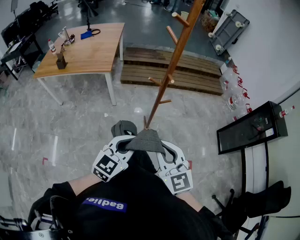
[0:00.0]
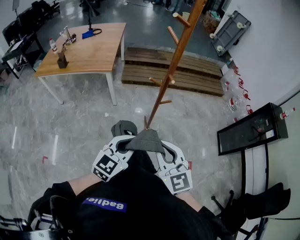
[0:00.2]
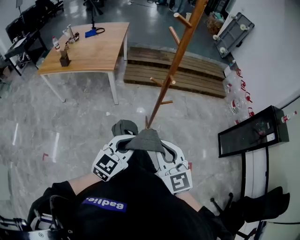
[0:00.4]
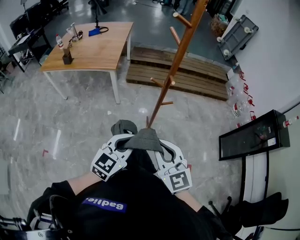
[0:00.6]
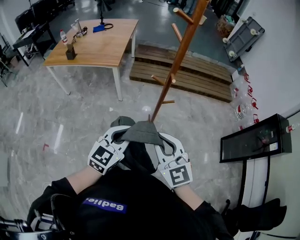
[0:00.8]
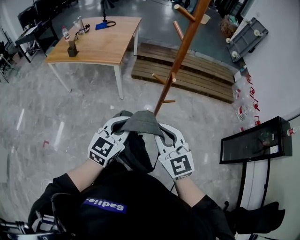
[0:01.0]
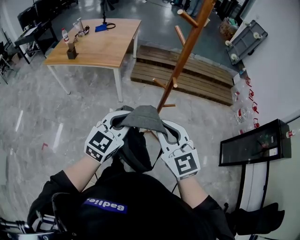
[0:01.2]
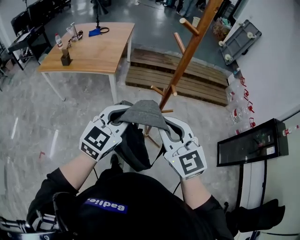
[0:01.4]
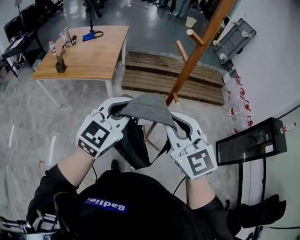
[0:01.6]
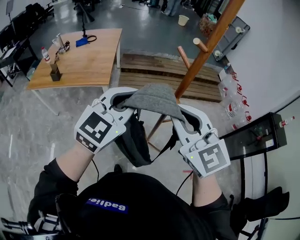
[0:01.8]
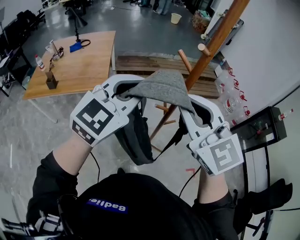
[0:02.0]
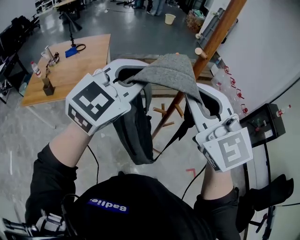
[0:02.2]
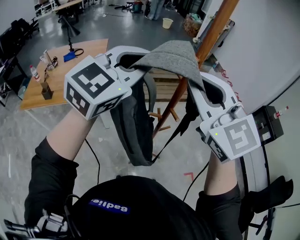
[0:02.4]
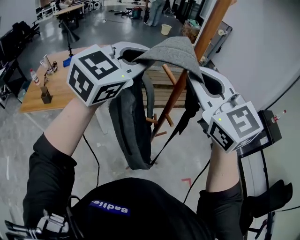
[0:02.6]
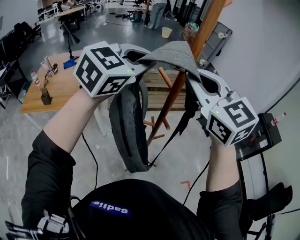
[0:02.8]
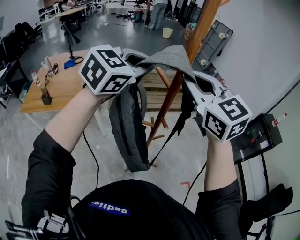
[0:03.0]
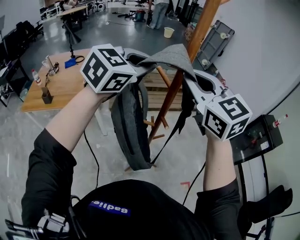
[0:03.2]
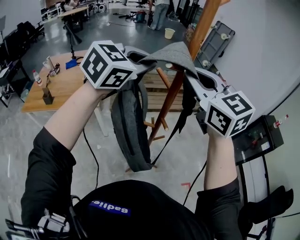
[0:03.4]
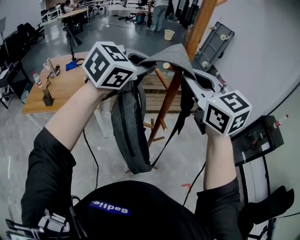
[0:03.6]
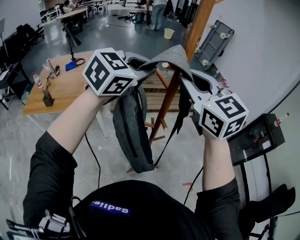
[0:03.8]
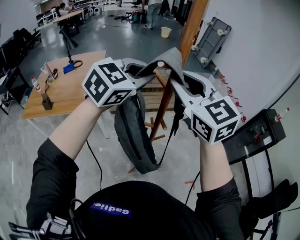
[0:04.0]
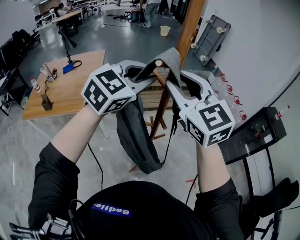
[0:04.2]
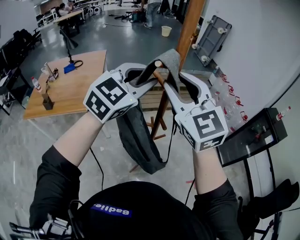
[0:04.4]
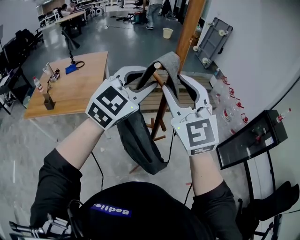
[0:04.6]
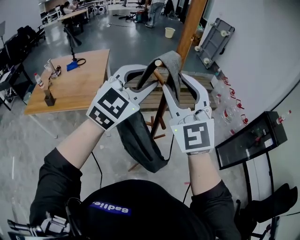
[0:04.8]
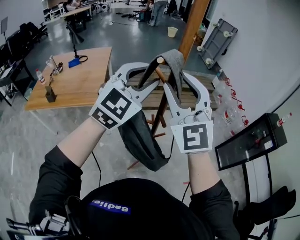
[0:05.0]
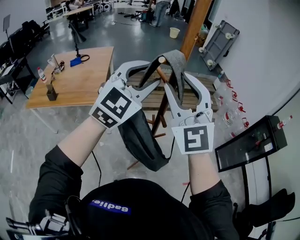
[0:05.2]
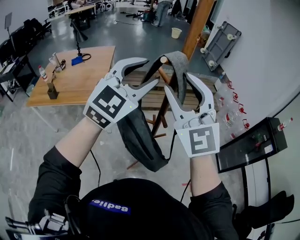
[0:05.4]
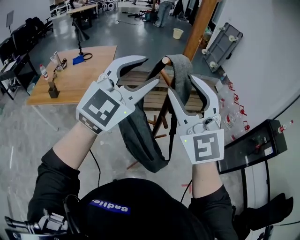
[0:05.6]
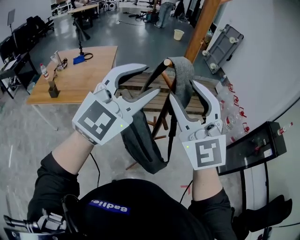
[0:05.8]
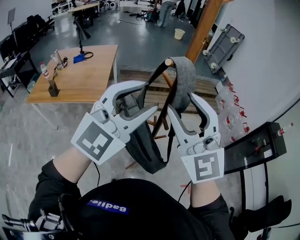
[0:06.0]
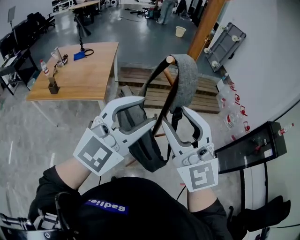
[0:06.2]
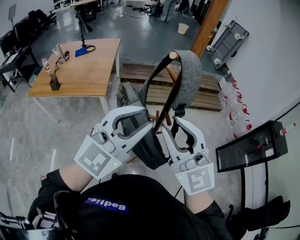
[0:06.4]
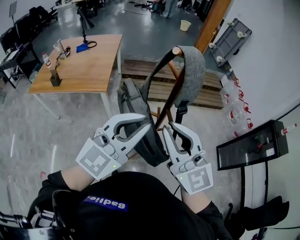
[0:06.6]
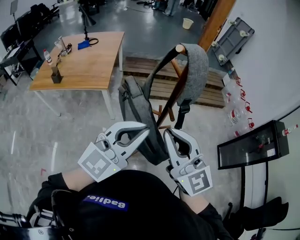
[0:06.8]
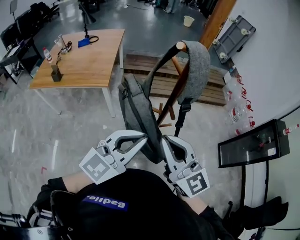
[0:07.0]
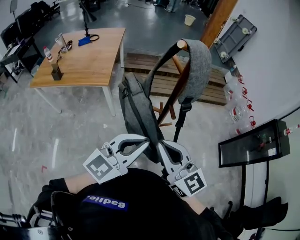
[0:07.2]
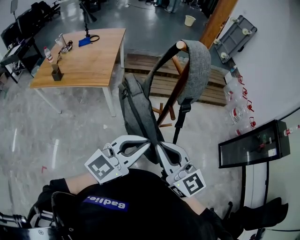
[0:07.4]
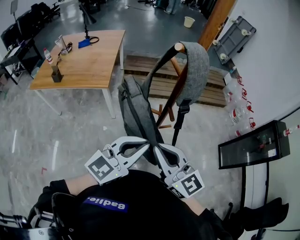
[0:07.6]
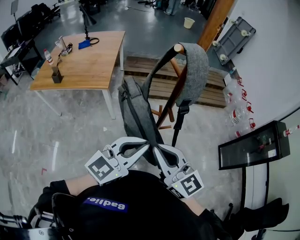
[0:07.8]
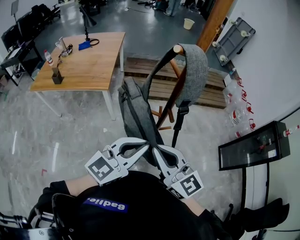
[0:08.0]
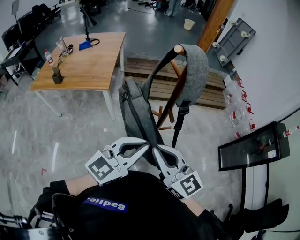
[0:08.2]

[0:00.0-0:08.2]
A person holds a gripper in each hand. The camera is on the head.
0:00.0 to 0:01.6: Both grippers move forward and upward, about 20 cm.
0:01.6 to 0:03.2: The two grippers go approximately 25 cm forward and upward. The left gripper changes its angle by roughly 20 degrees.
0:03.2 to 0:05.0: The right gripper swivels approximately 30 degrees, and opens its fingers. Meanwhile the left gripper ends up some 5 cm from where it was, turns by some 20 degrees, and opens.
0:05.0 to 0:06.6: The left gripper moves backward and downward, approximately 15 cm, rotates some 20 degrees, and closes up, while the right gripper shifts about 15 cm downward and backward, rotates roughly 30 degrees, and closes.
0:06.6 to 0:08.2: The grippers both shift downward by approximately 10 cm. The right gripper swivels roughly 20 degrees.

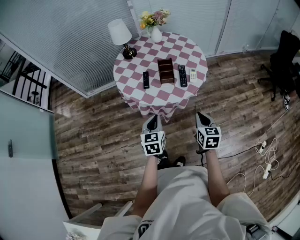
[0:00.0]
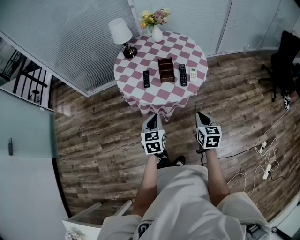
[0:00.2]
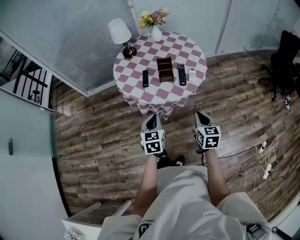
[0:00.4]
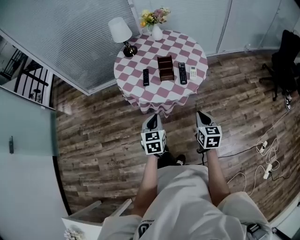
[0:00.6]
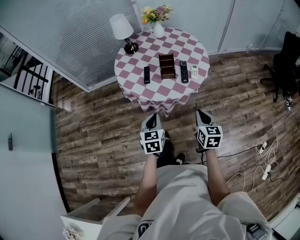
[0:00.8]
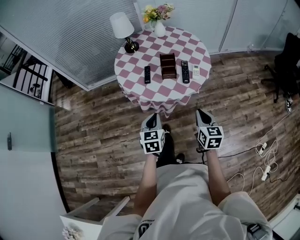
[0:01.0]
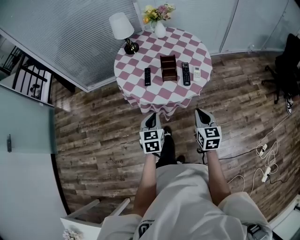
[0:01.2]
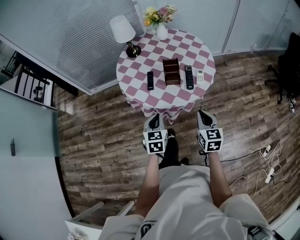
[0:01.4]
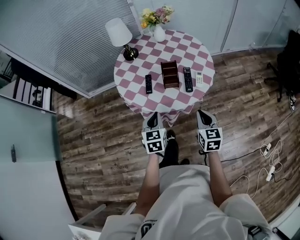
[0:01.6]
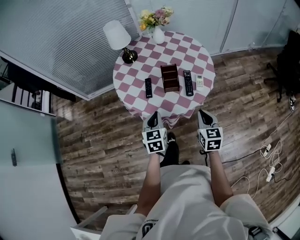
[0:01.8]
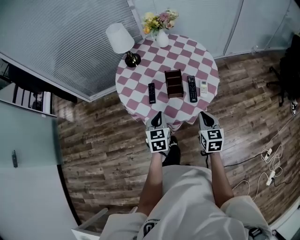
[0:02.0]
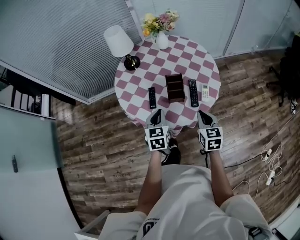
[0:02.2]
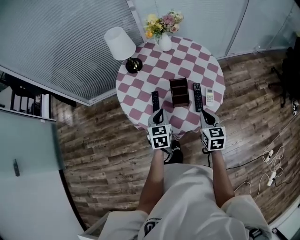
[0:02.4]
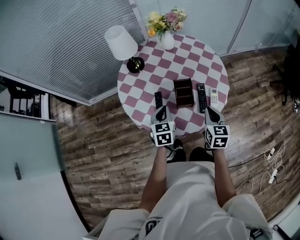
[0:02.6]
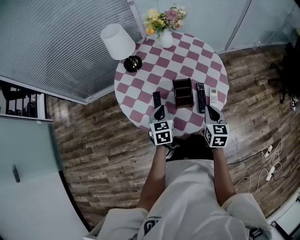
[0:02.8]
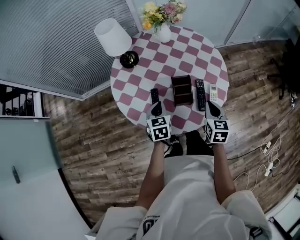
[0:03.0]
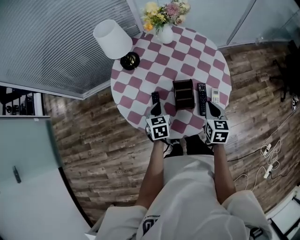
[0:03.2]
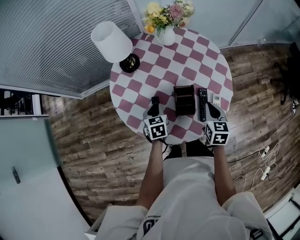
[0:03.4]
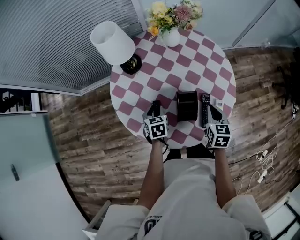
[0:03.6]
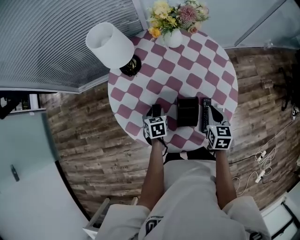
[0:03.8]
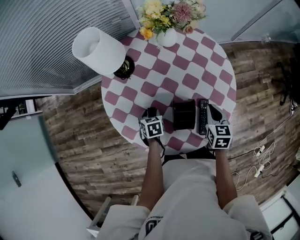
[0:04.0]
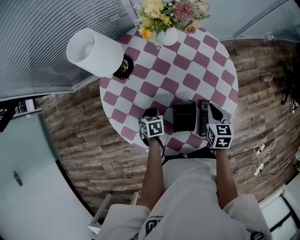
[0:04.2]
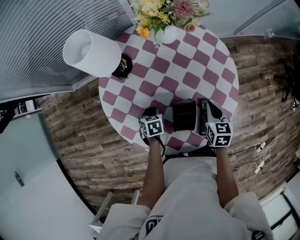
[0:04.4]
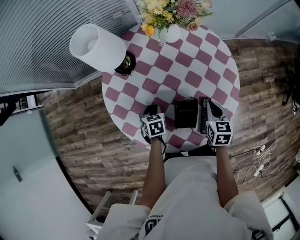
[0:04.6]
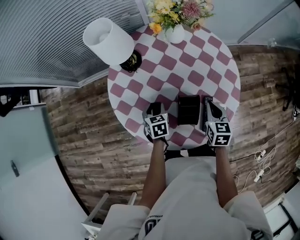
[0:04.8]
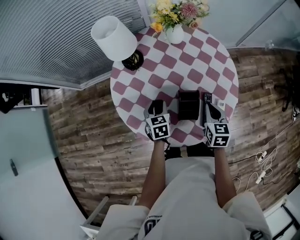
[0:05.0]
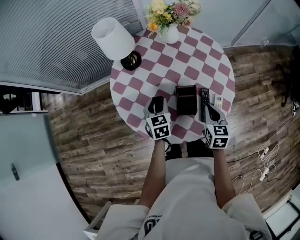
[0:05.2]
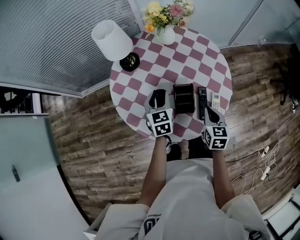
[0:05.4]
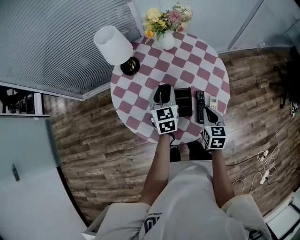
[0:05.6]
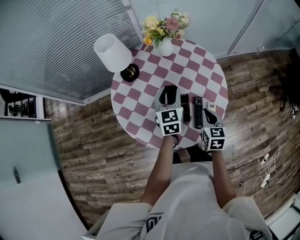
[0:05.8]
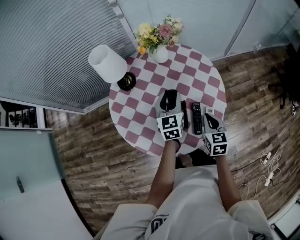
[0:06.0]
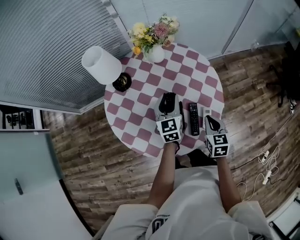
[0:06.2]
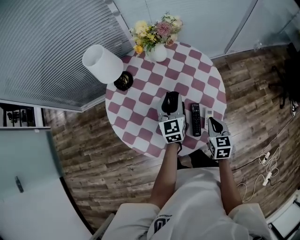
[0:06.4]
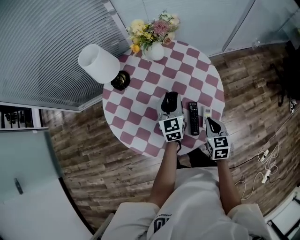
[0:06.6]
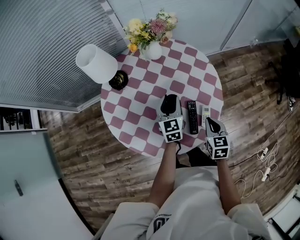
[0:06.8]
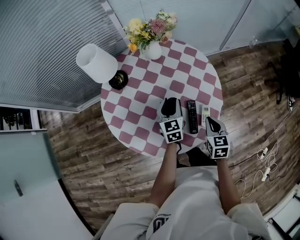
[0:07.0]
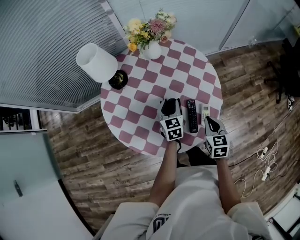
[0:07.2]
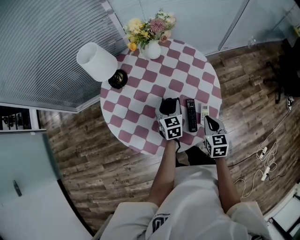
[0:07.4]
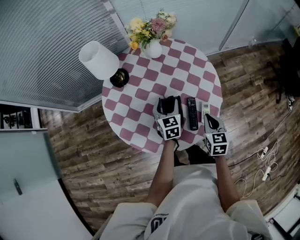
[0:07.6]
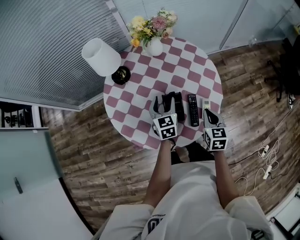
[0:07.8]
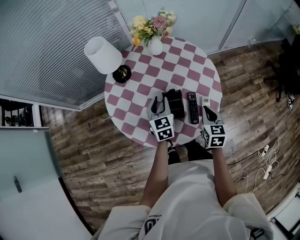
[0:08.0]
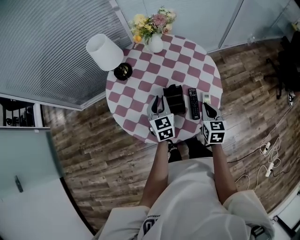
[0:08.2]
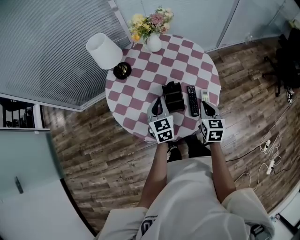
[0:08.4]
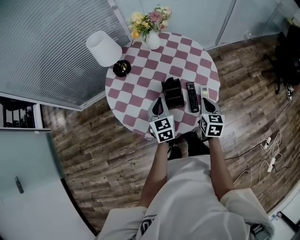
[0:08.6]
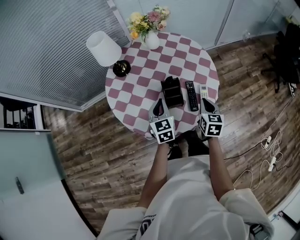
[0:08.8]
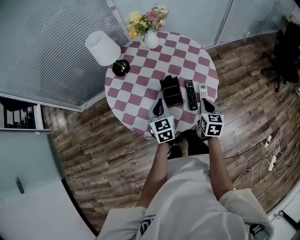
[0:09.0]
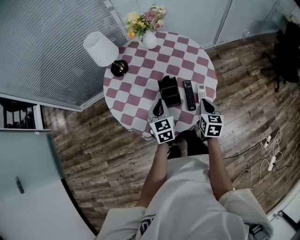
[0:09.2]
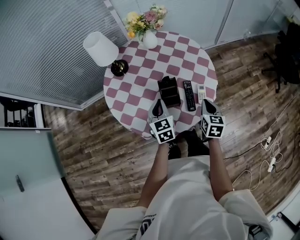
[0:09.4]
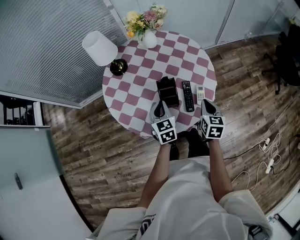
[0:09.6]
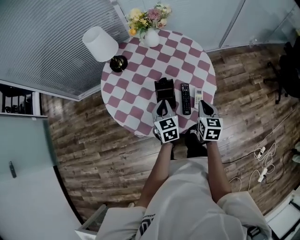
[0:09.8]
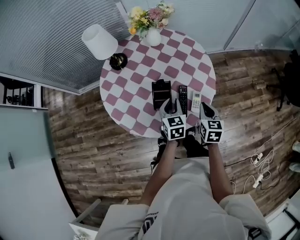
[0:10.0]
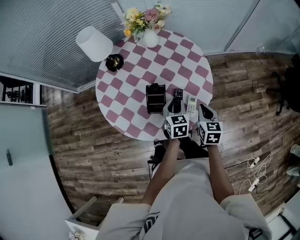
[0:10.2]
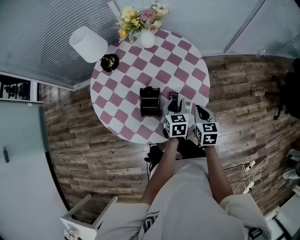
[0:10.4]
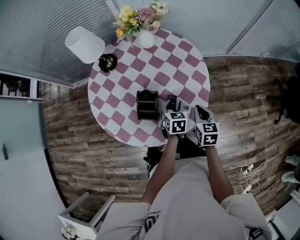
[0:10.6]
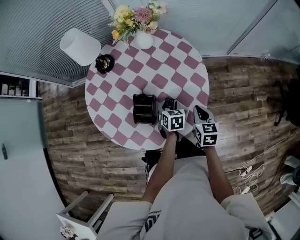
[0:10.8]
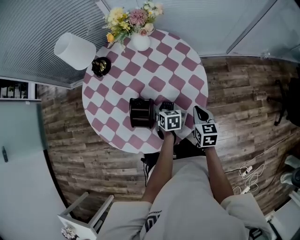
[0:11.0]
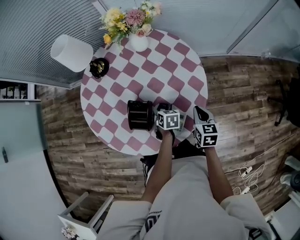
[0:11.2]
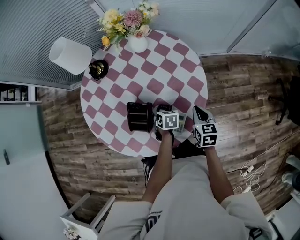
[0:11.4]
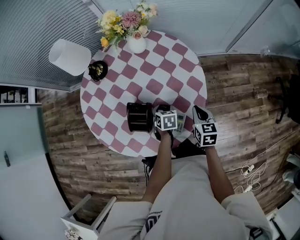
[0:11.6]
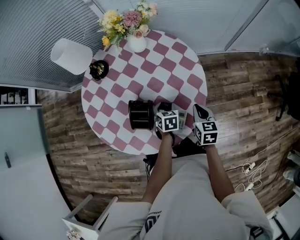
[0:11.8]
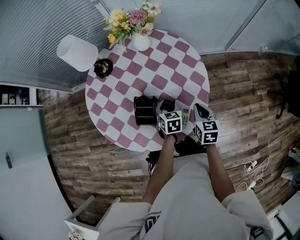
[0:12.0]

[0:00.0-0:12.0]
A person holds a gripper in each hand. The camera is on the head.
0:00.0 to 0:01.6: Both grippers move forward, some 10 cm.
0:01.6 to 0:03.0: Both grippers move forward, approximately 25 cm.
0:03.0 to 0:04.4: The right gripper is displaced forward and downward by approximately 15 cm. Meanwhile the left gripper travels downward and forward by approximately 20 cm, rotates some 30 degrees, and opens.
0:04.4 to 0:06.0: The right gripper shifts some 15 cm backward and upward, while the left gripper is displaced upward and to the right by approximately 30 cm, and points its fingers some 50 degrees further upward.
0:06.0 to 0:07.6: The left gripper shifts approximately 10 cm downward.
0:07.6 to 0:09.0: The right gripper travels backward by some 5 cm. Meanwhile the left gripper moves backward, some 10 cm, and closes.
0:09.0 to 0:10.4: The left gripper is displaced to the right by some 20 cm, and opens up, while the right gripper moves to the right and forward, some 10 cm, and turns by roughly 20 degrees.
0:10.4 to 0:12.0: The left gripper heads downward, covering approximately 5 cm, while the right gripper heads forward, covering about 5 cm.

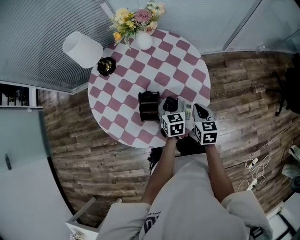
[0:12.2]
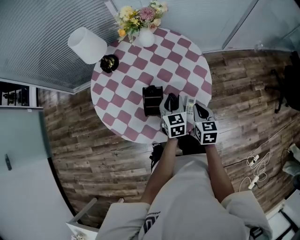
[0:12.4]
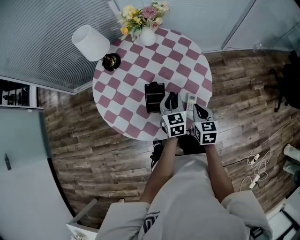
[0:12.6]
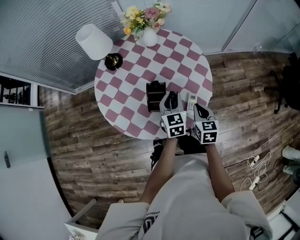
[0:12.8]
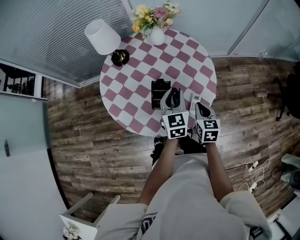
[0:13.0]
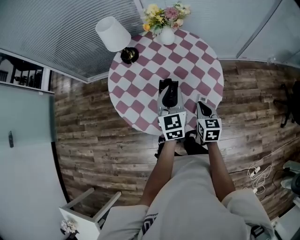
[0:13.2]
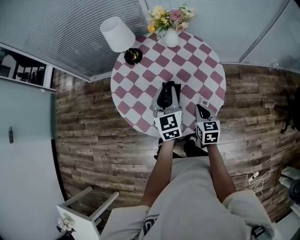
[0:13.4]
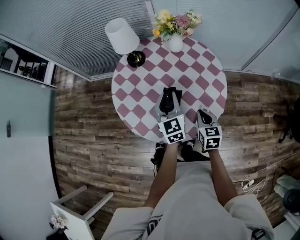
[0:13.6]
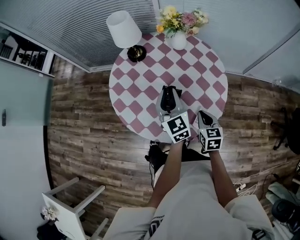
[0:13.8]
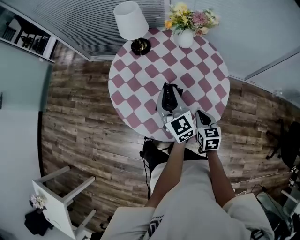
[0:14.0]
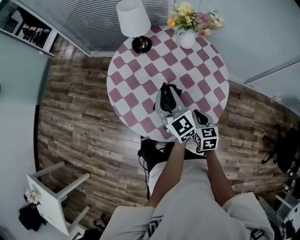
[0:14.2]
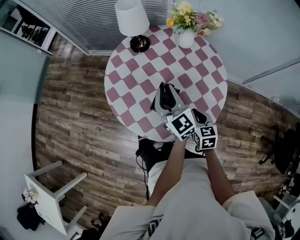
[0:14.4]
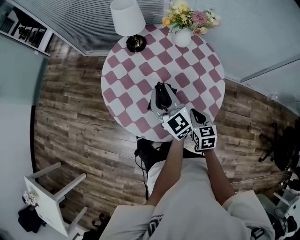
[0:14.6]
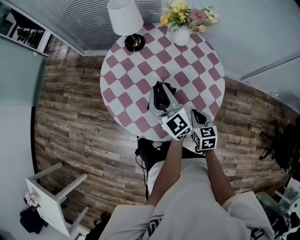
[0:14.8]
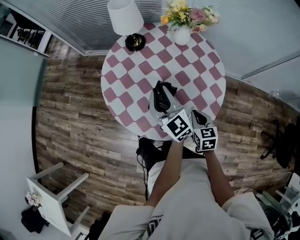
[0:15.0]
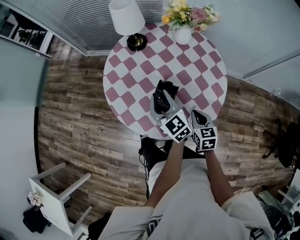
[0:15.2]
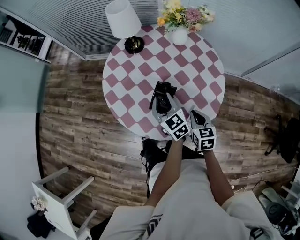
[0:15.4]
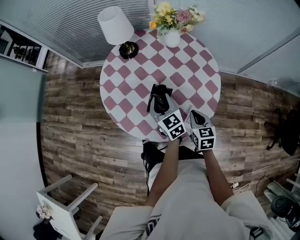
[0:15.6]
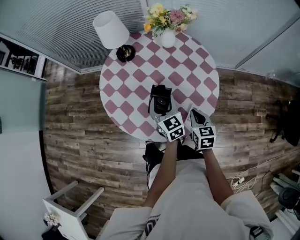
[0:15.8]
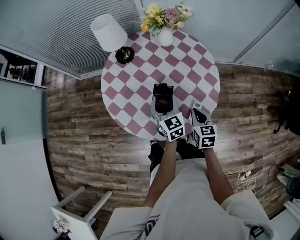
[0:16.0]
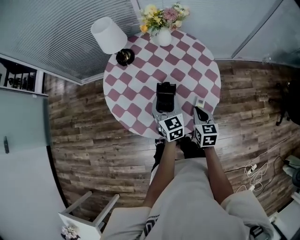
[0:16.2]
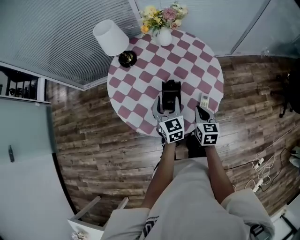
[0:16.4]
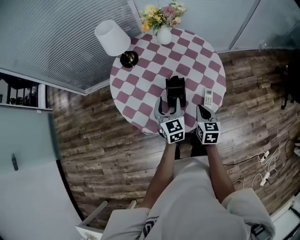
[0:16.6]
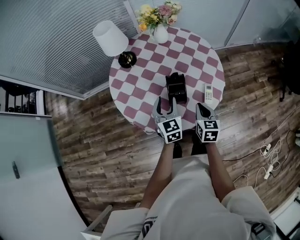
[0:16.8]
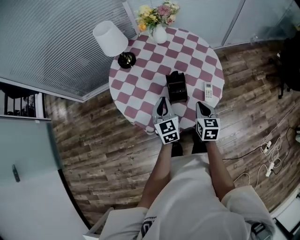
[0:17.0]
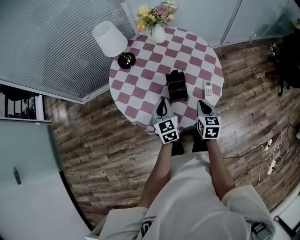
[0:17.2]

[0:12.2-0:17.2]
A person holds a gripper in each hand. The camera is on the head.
0:12.2 to 0:13.8: The left gripper shifts roughly 20 cm upward and to the left, and swivels roughly 40 degrees, while the right gripper is displaced to the left by about 5 cm.
0:13.8 to 0:15.6: The left gripper travels downward by roughly 10 cm.
0:15.6 to 0:17.2: The left gripper ends up approximately 10 cm from where it was, swivels about 40 degrees, and closes its fingers. Meanwhile the right gripper moves some 15 cm, and turns by about 30 degrees.
